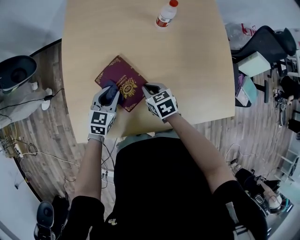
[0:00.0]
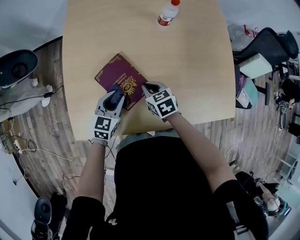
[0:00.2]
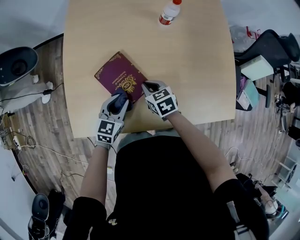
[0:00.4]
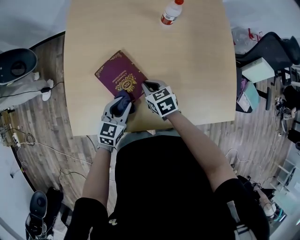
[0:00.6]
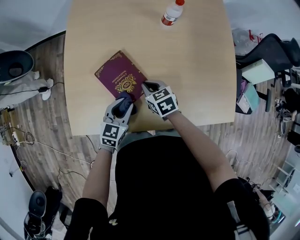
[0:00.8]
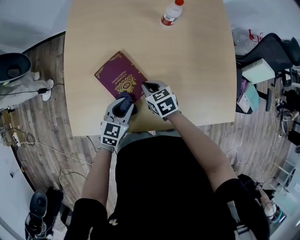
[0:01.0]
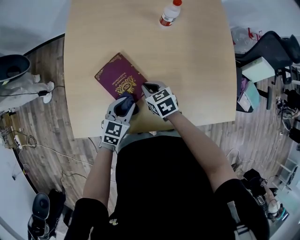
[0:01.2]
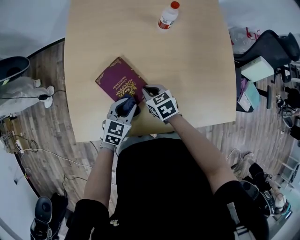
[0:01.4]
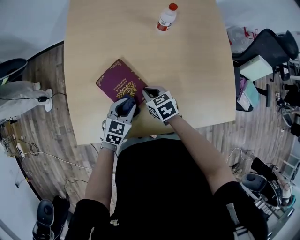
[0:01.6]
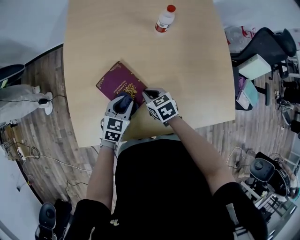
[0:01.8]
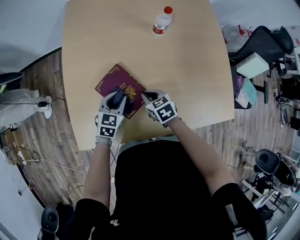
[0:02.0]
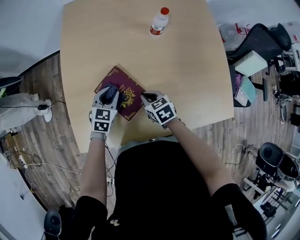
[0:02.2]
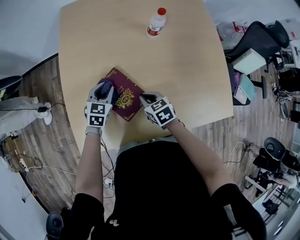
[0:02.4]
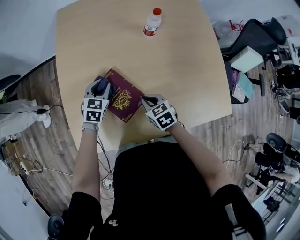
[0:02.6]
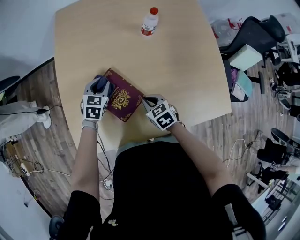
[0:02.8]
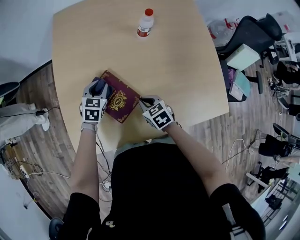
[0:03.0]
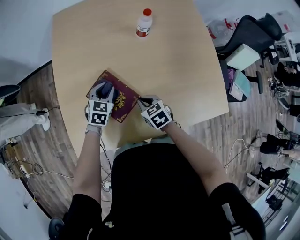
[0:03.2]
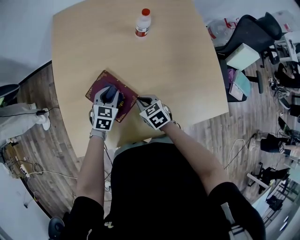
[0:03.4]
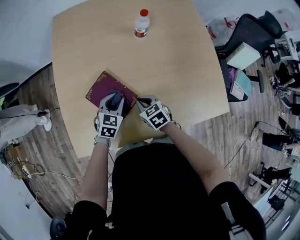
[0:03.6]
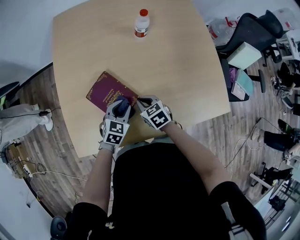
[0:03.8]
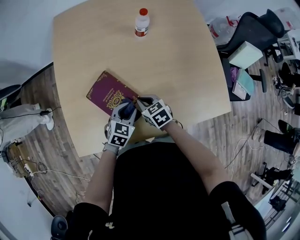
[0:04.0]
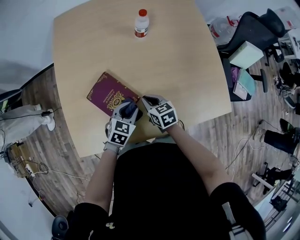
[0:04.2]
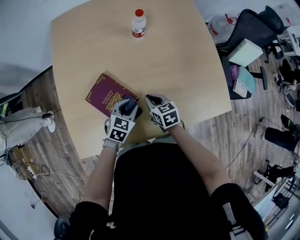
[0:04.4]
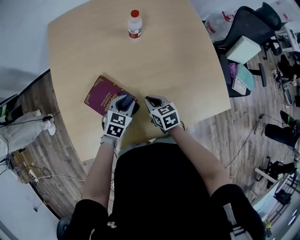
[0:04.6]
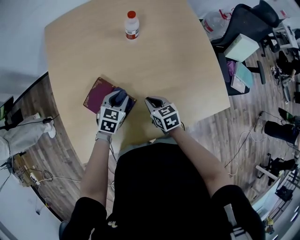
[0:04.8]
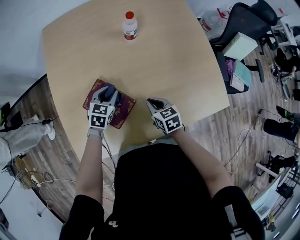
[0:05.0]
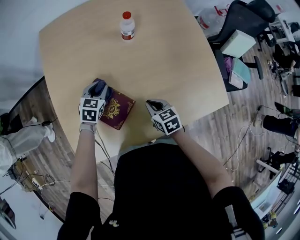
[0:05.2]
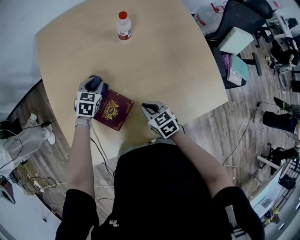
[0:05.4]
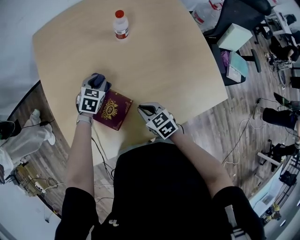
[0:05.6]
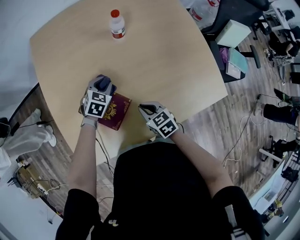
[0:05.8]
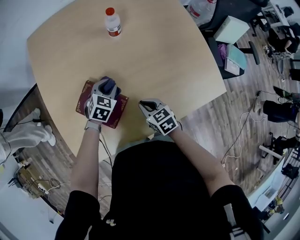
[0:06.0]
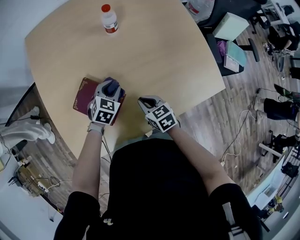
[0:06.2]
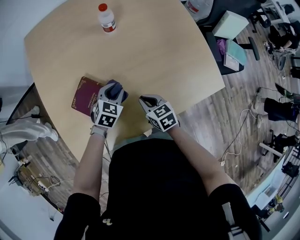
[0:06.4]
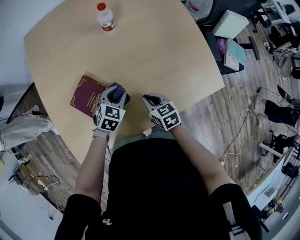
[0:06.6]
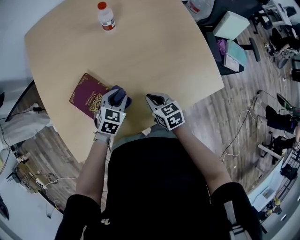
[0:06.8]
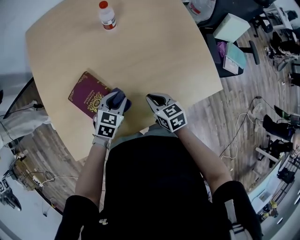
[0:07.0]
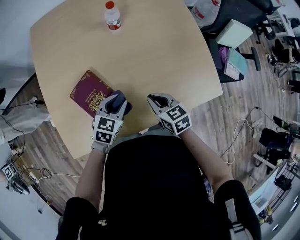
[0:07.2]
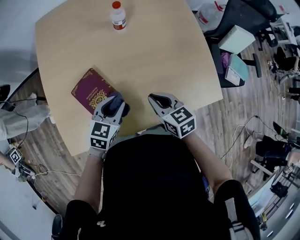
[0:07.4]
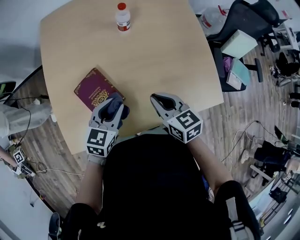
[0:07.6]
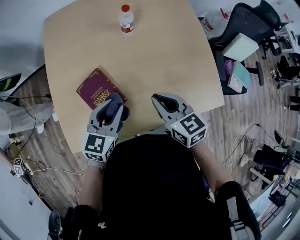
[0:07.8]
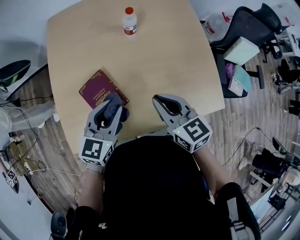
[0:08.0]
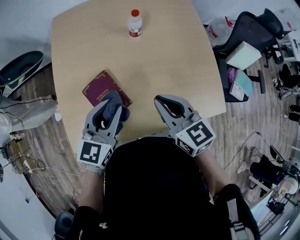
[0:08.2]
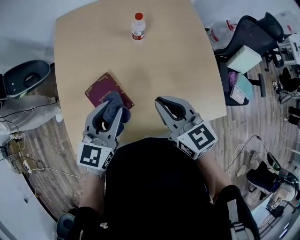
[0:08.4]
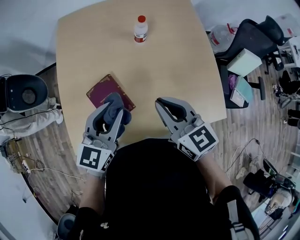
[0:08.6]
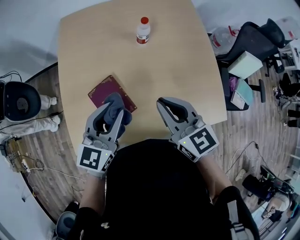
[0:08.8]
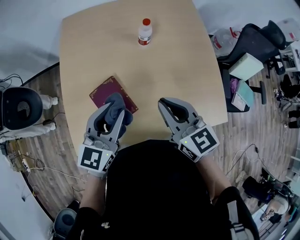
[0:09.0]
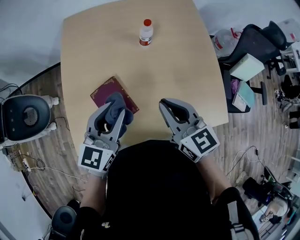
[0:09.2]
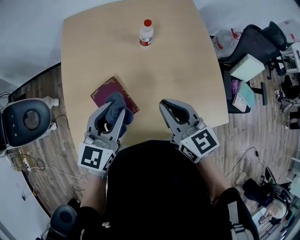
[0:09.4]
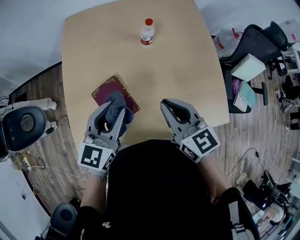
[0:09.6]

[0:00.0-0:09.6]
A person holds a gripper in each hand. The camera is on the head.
0.0 to 1.6 s: The left gripper is displaced to the right and backward by approximately 10 cm.
1.6 to 3.2 s: The left gripper is displaced forward by about 10 cm.
3.2 to 4.8 s: The left gripper goes some 10 cm to the right, and moves about 10 cm backward and comes back. Meanwhile the right gripper travels to the right by roughly 5 cm.
6.4 to 8.0 s: The grippers both shift upward by approximately 20 cm. The left gripper rotates roughly 30 degrees. The right gripper turns by approximately 20 degrees.
8.0 to 9.6 s: Both grippers move upward, roughly 5 cm.

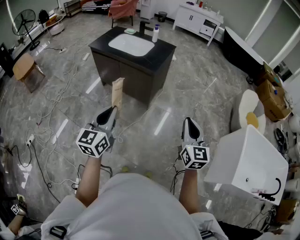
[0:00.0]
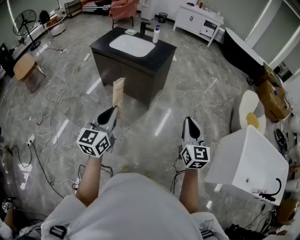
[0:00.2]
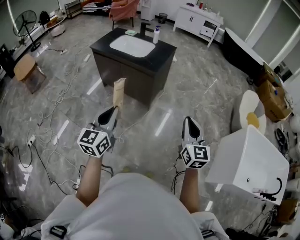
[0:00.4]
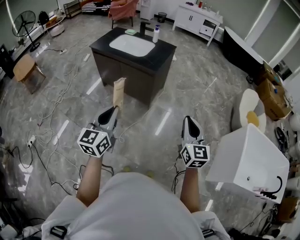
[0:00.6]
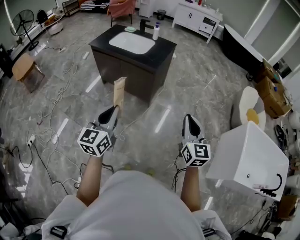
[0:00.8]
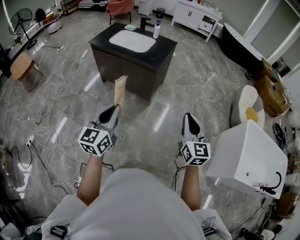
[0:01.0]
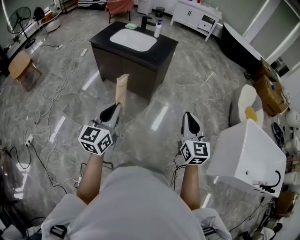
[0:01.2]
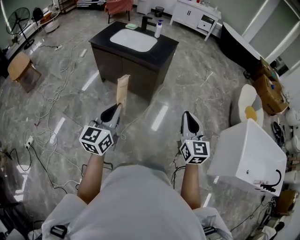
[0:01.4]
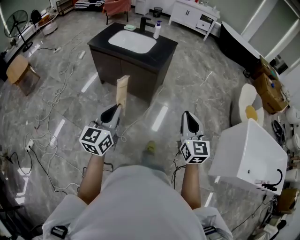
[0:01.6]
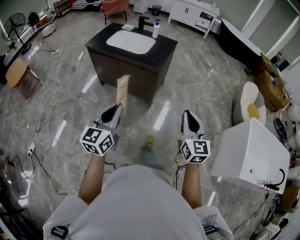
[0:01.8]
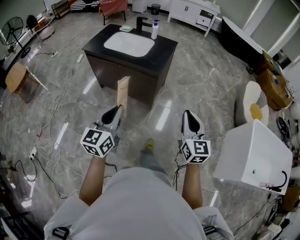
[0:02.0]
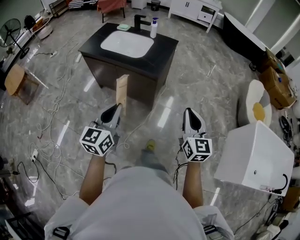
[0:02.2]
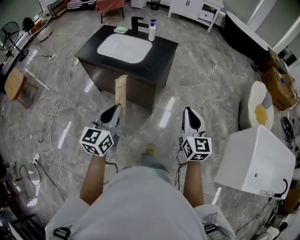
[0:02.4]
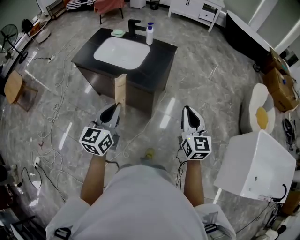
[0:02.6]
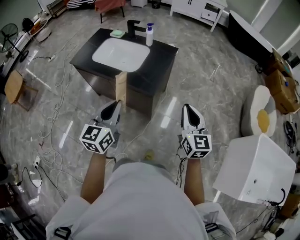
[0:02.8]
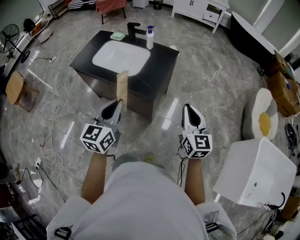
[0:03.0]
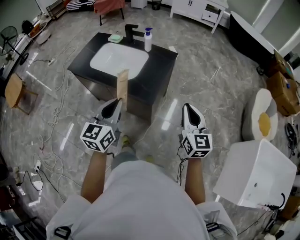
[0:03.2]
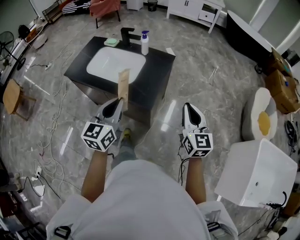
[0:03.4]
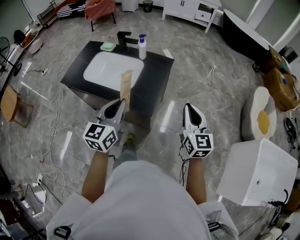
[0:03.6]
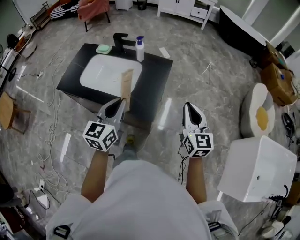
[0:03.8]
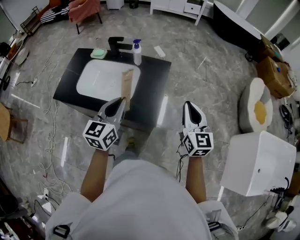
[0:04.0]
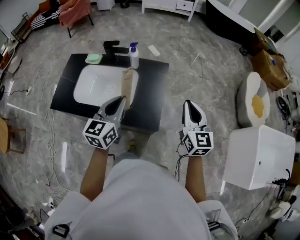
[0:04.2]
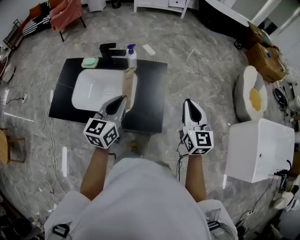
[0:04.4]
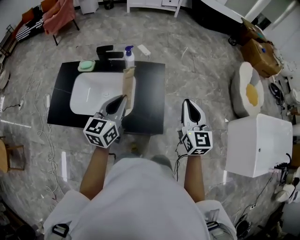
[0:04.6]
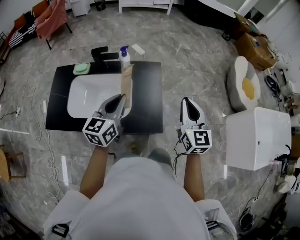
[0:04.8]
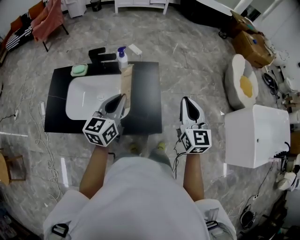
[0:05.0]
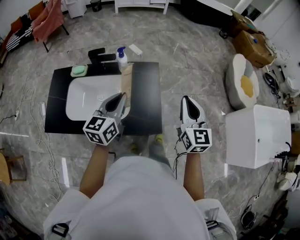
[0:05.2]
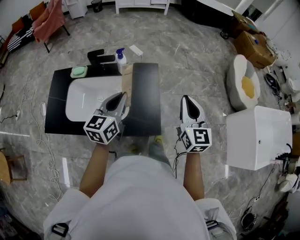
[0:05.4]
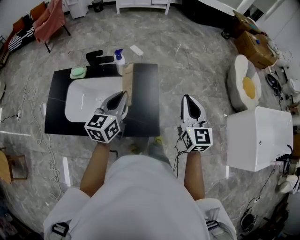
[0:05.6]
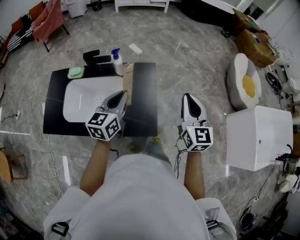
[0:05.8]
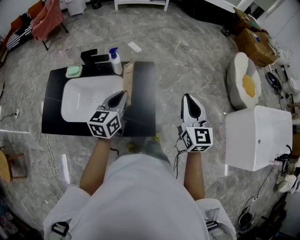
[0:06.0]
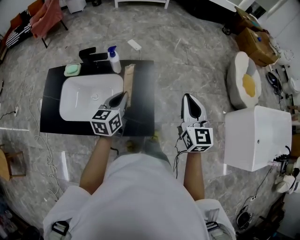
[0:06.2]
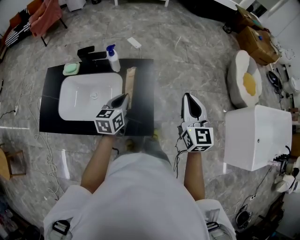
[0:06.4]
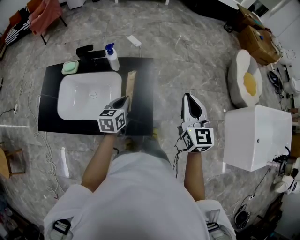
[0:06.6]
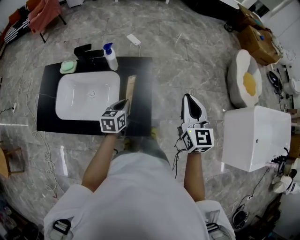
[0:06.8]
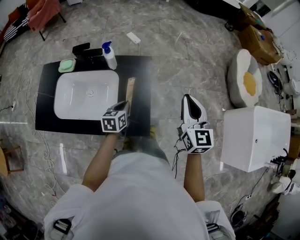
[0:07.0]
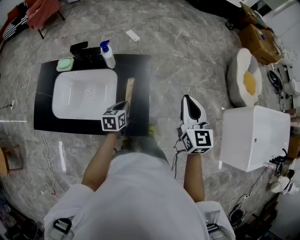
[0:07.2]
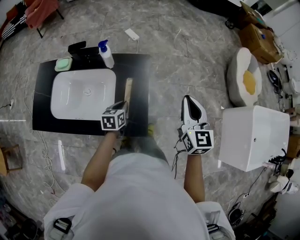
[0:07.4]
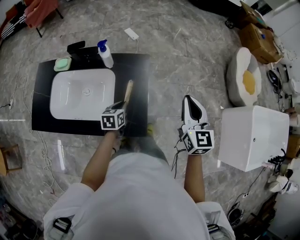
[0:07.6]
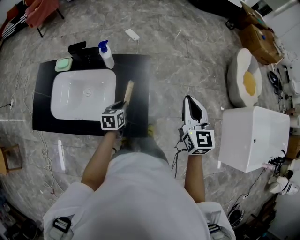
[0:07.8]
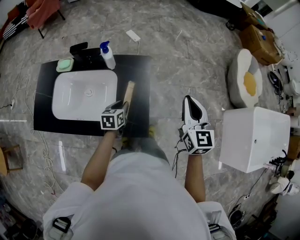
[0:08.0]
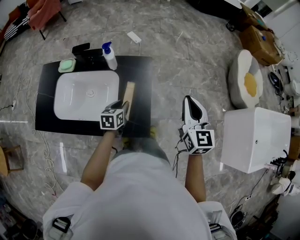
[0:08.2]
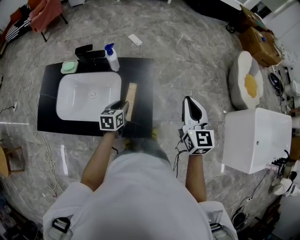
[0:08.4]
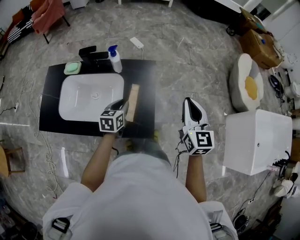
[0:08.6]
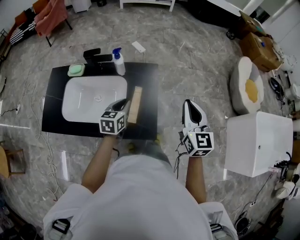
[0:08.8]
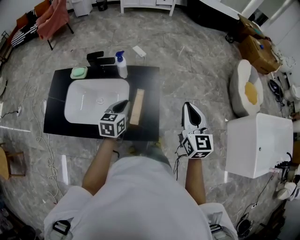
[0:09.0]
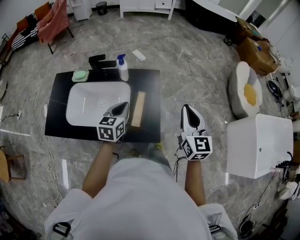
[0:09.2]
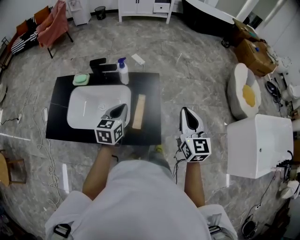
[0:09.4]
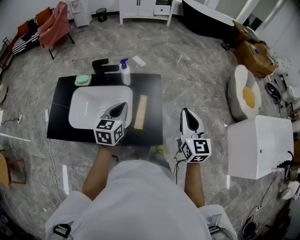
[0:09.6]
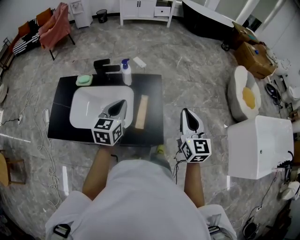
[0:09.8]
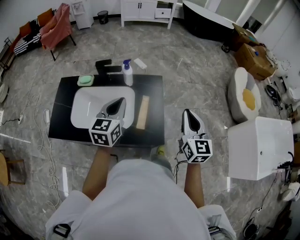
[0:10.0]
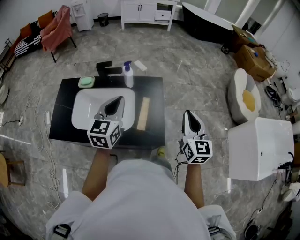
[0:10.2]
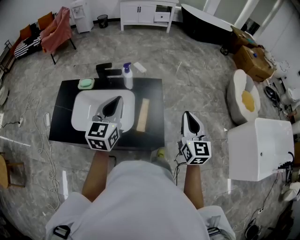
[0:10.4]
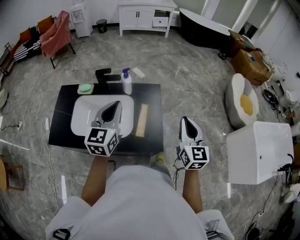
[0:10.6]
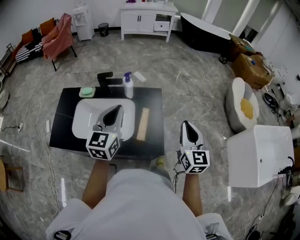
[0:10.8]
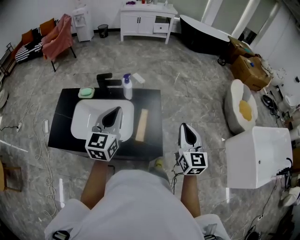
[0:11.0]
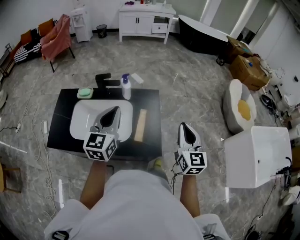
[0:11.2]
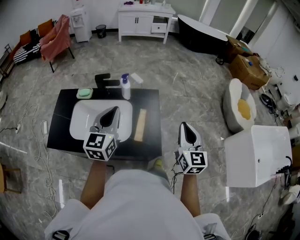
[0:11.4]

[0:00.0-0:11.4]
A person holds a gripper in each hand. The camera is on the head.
0.0 to 1.4 s: The two grippers go roughly 10 cm to the left.
1.4 to 2.8 s: The two grippers travel together, forward, about 40 cm.
2.8 to 4.2 s: Both grippers move forward, approximately 30 cm.
4.2 to 5.6 s: The left gripper goes roughly 10 cm forward.
5.6 to 7.2 s: The right gripper heads forward, covering approximately 5 cm. The left gripper heads downward, covering about 25 cm, and swivels roughly 30 degrees.
7.2 to 8.6 s: The left gripper shifts by approximately 5 cm.
8.6 to 10.0 s: The left gripper travels upward by about 20 cm, and rotates about 20 degrees, while the right gripper is displaced backward and to the left by about 10 cm.
10.0 to 11.4 s: The left gripper heads upward, covering roughly 5 cm.

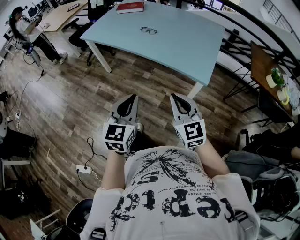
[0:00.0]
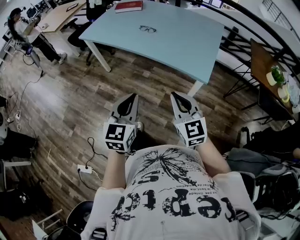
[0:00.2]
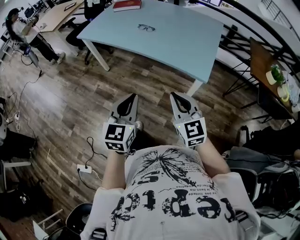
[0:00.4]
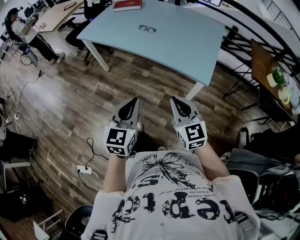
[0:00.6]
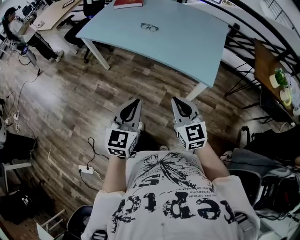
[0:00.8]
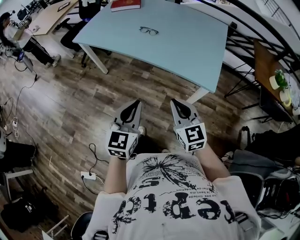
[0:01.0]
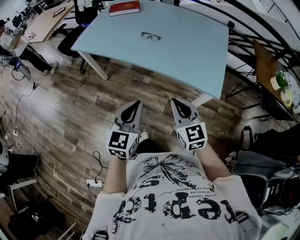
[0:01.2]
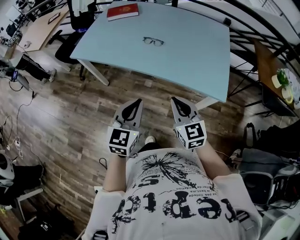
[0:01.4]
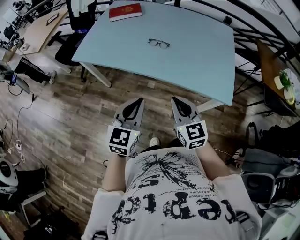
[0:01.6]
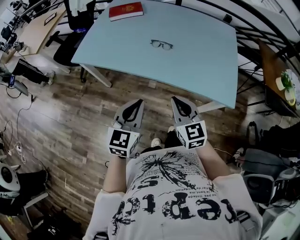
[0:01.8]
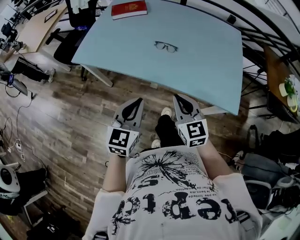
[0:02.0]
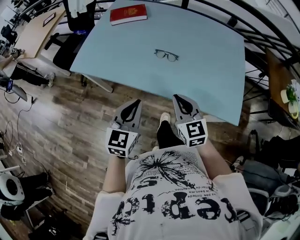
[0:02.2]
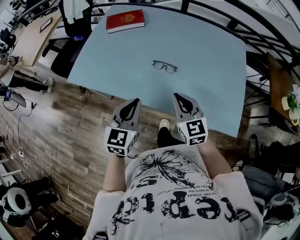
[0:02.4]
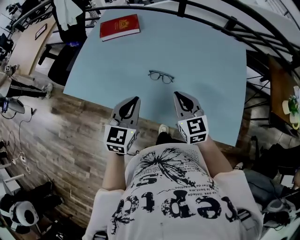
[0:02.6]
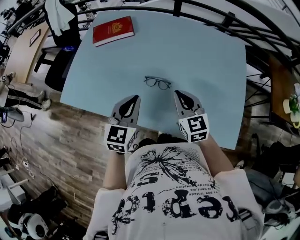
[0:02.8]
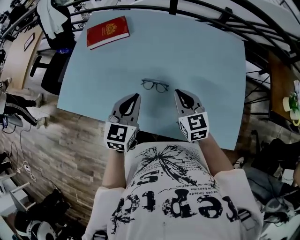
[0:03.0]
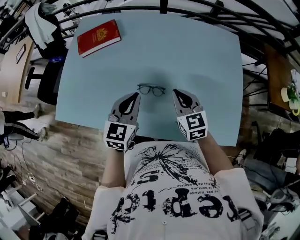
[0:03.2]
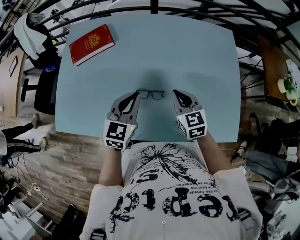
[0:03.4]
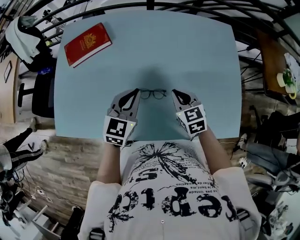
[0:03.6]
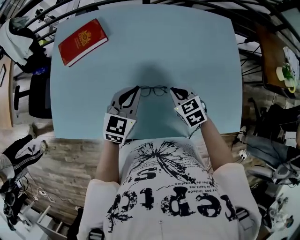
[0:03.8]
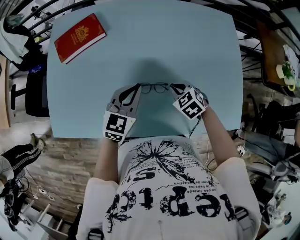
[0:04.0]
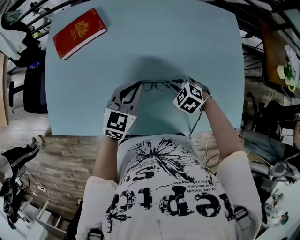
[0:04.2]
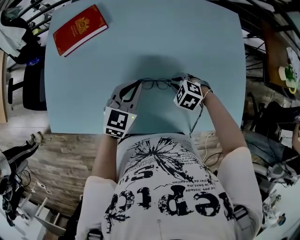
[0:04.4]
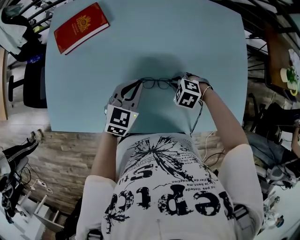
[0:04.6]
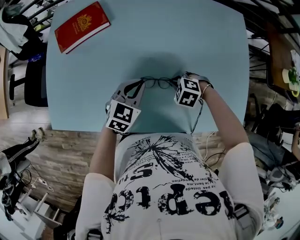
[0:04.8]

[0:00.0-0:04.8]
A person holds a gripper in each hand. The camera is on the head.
0.0 to 1.6 s: The grippers both shift forward and to the left by approximately 30 cm.
1.6 to 3.2 s: The two grippers travel together, forward, some 40 cm.
3.2 to 4.8 s: The left gripper is displaced downward by about 10 cm, and turns by some 30 degrees. Meanwhile the right gripper goes about 15 cm downward, and angles its fingers downward, by roughly 50 degrees.
